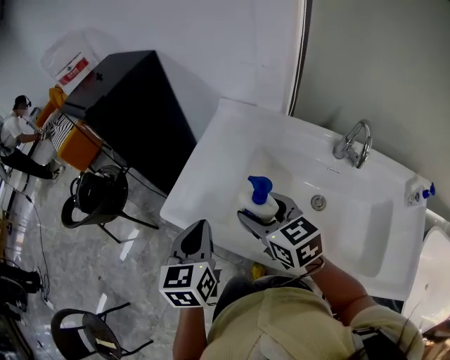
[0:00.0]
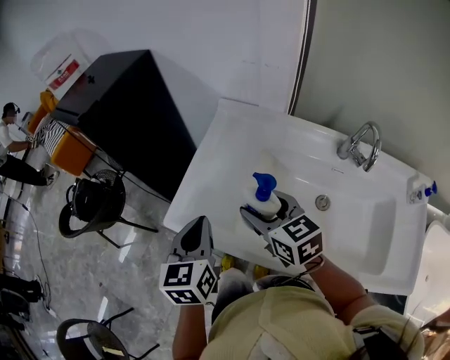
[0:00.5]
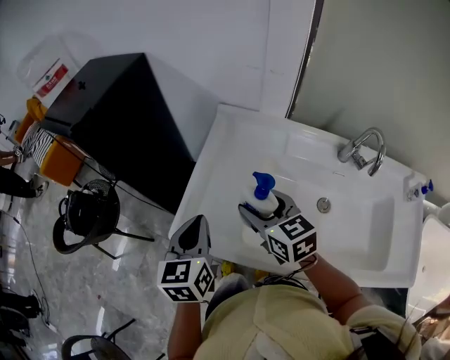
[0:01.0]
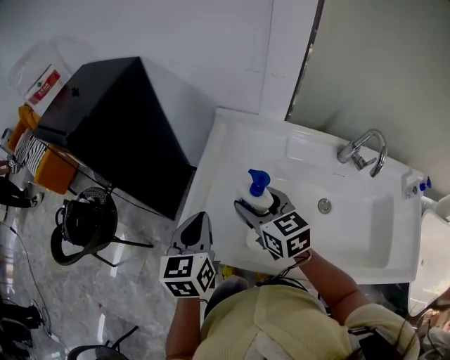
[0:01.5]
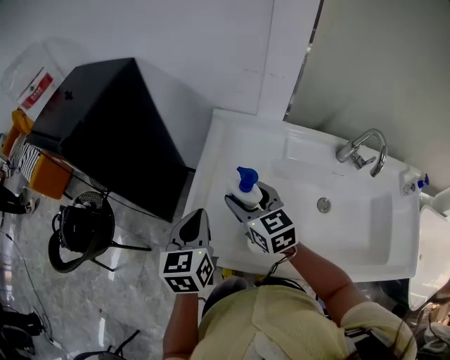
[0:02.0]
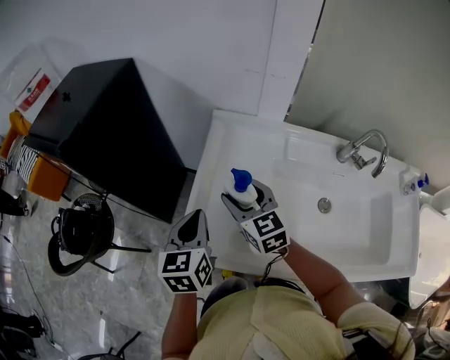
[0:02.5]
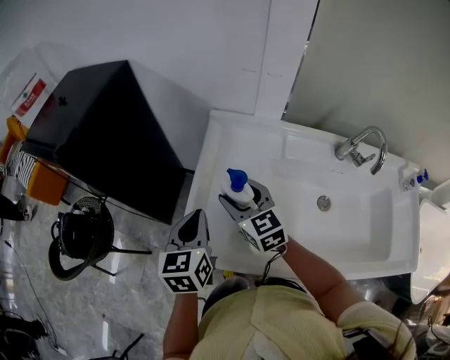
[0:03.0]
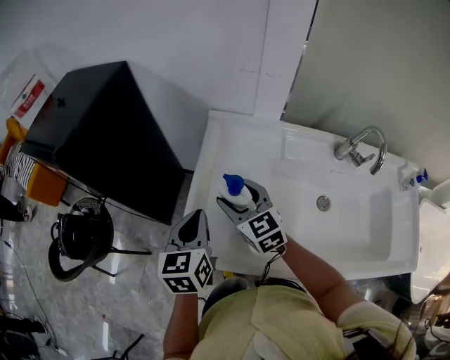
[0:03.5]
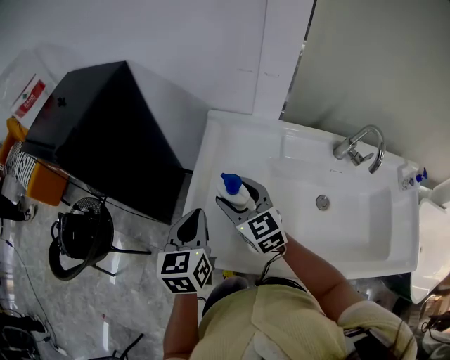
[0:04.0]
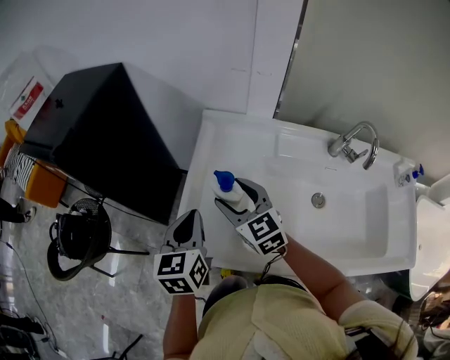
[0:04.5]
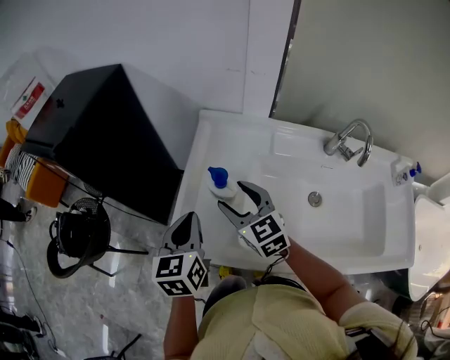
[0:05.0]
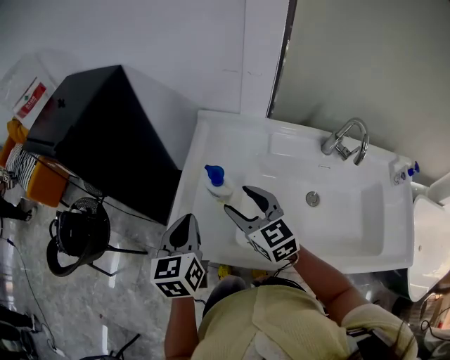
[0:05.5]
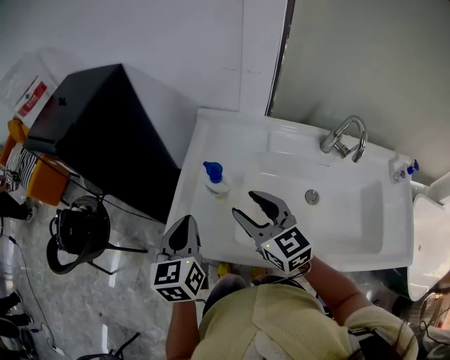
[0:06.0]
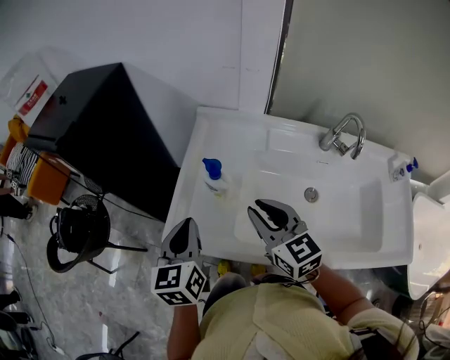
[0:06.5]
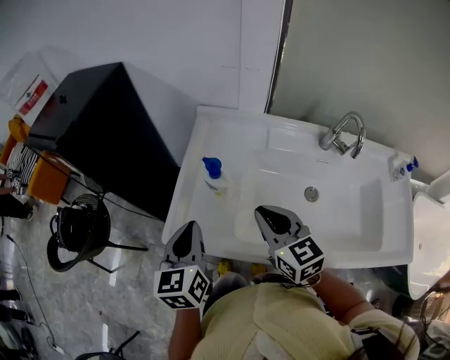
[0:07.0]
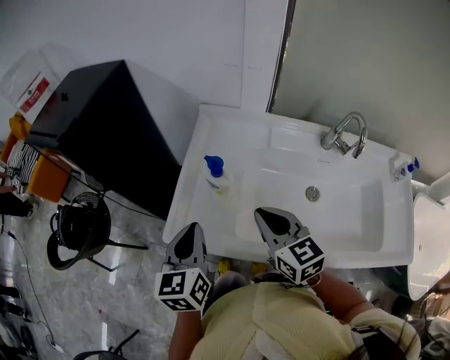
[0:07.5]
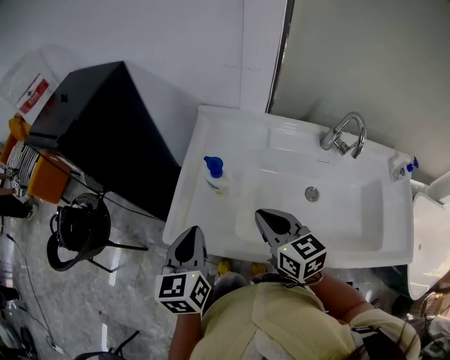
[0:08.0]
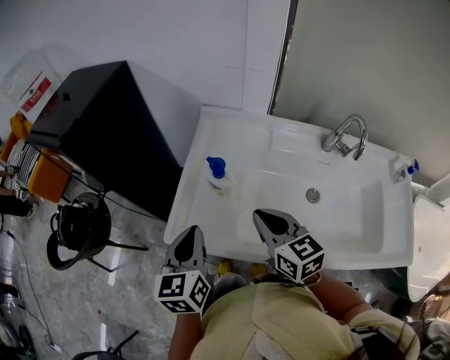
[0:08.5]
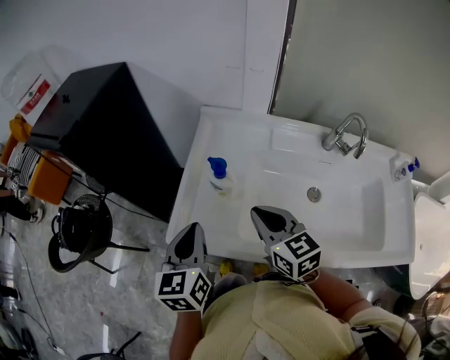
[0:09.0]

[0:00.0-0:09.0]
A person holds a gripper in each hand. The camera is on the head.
0:00.0 to 0:02.0: The left gripper moves forward, some 15 cm. The right gripper goes some 15 cm forward and to the left.
0:02.0 to 0:04.5: The grippers move only a little.
0:04.5 to 0:07.0: The left gripper travels backward by approximately 5 cm. The right gripper heads backward and to the right, covering about 15 cm, and closes its fingers.
0:07.0 to 0:09.0: The grippers stay close to where they were, moving slightly.

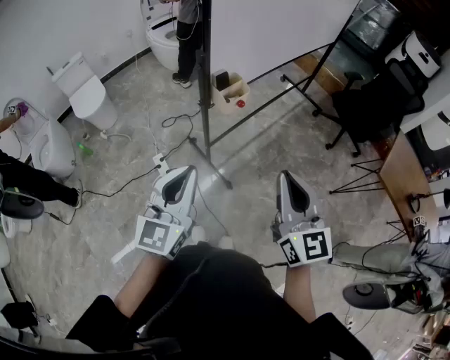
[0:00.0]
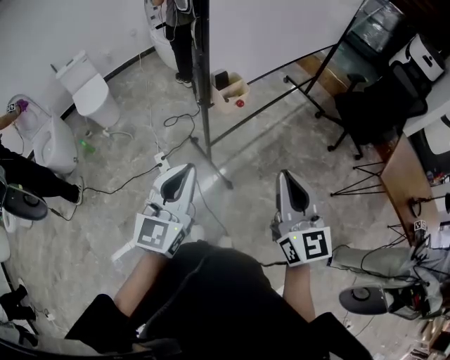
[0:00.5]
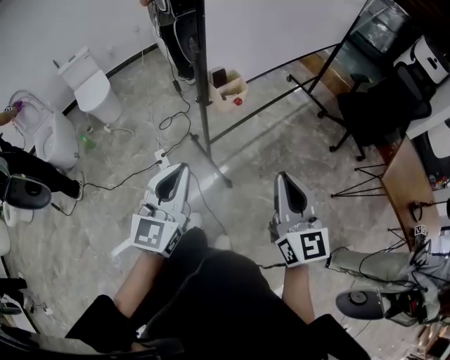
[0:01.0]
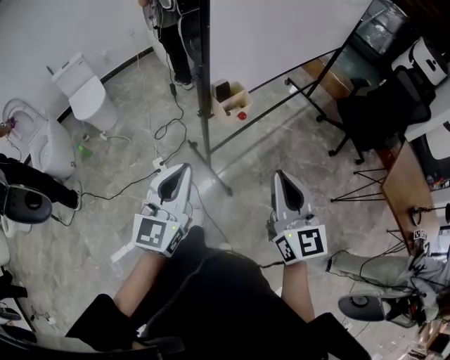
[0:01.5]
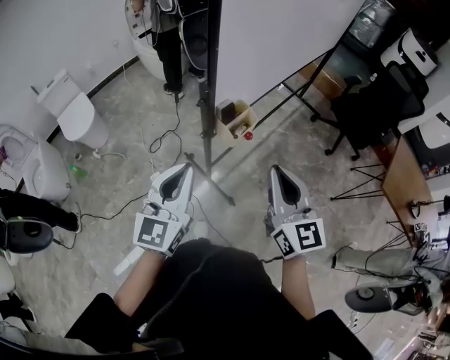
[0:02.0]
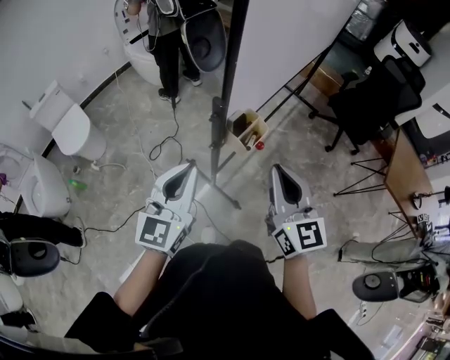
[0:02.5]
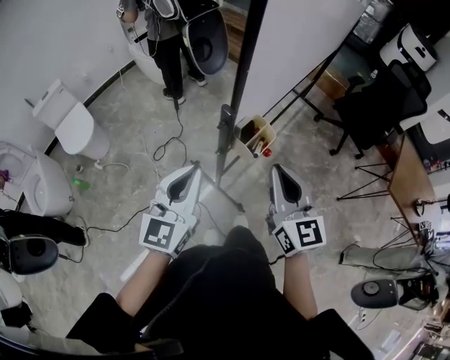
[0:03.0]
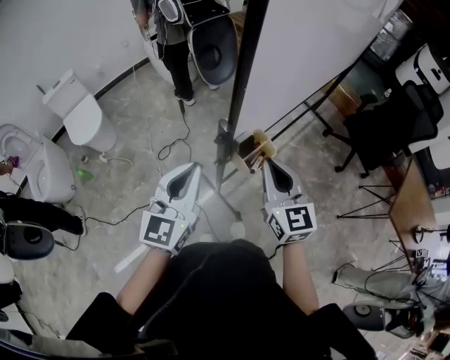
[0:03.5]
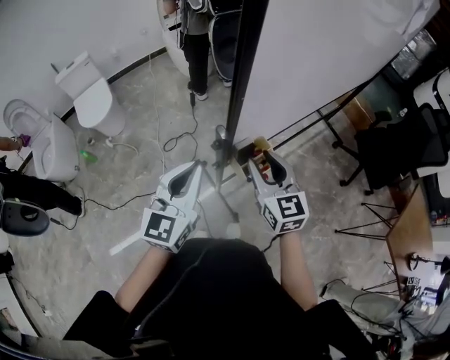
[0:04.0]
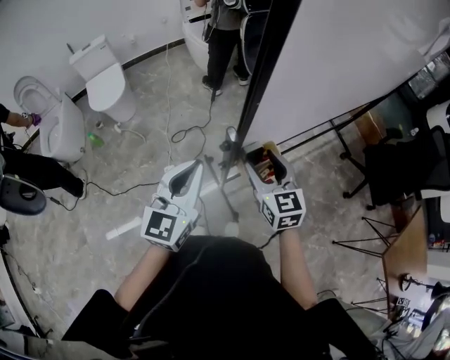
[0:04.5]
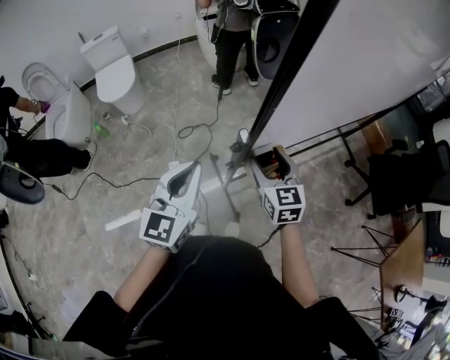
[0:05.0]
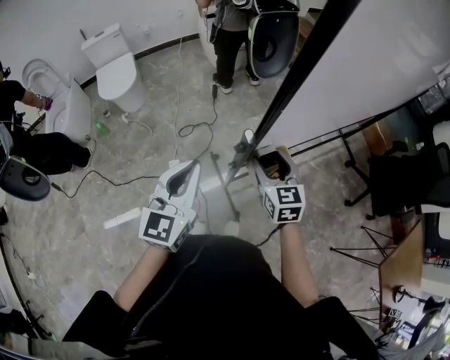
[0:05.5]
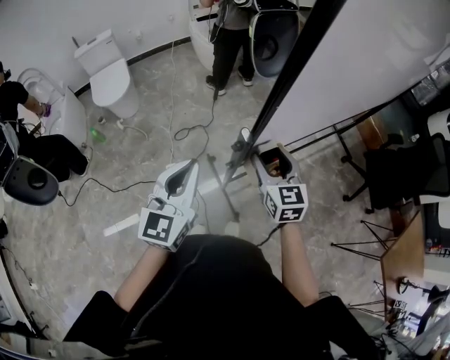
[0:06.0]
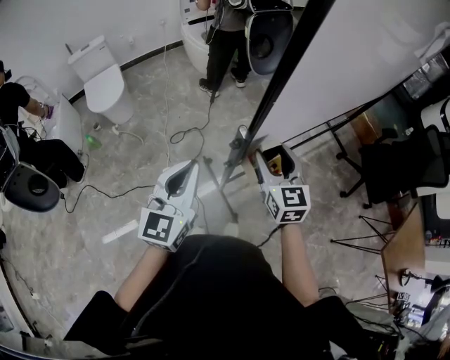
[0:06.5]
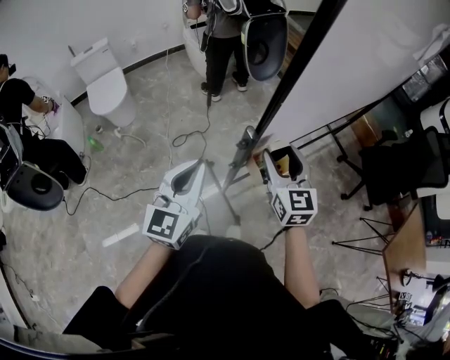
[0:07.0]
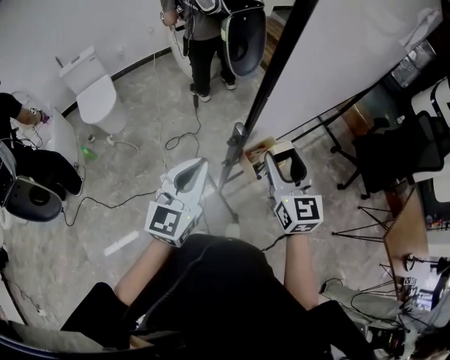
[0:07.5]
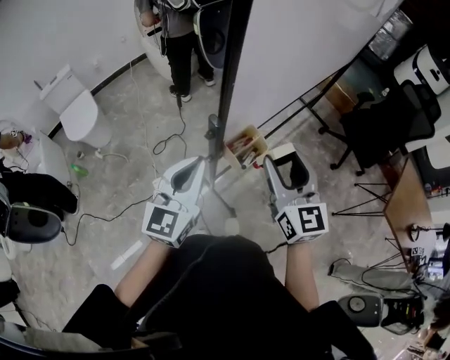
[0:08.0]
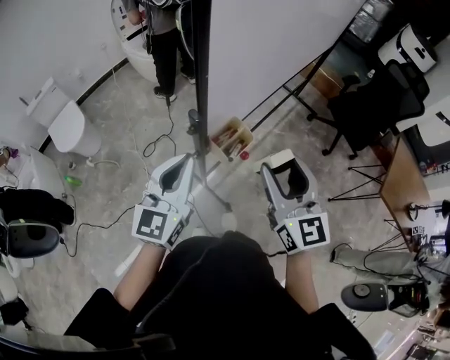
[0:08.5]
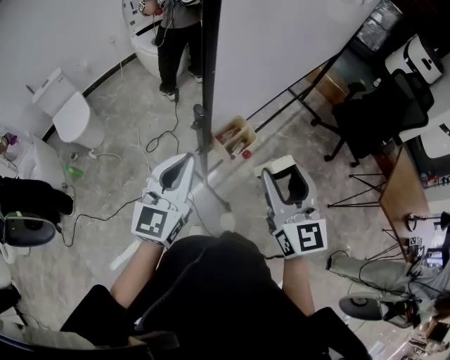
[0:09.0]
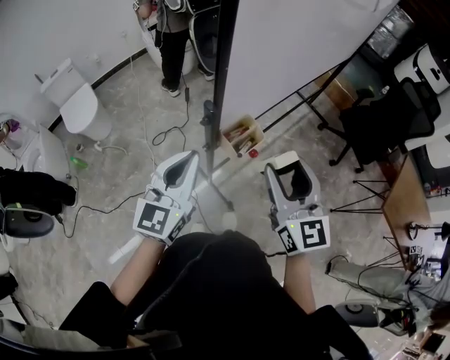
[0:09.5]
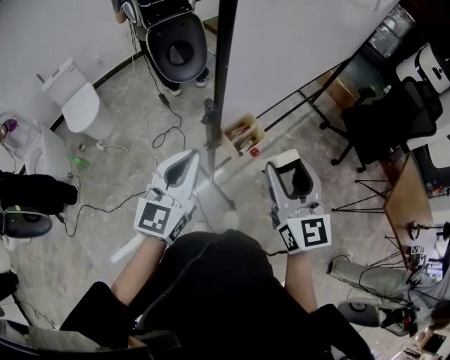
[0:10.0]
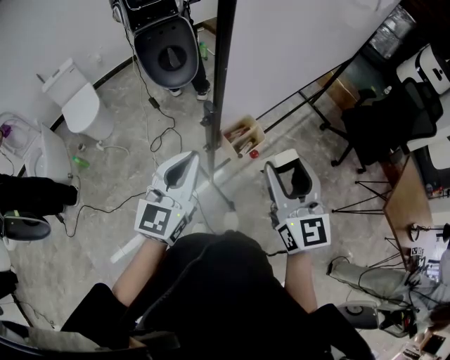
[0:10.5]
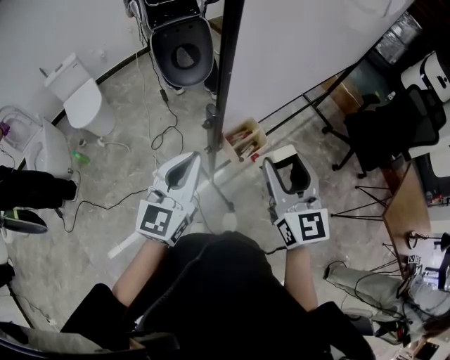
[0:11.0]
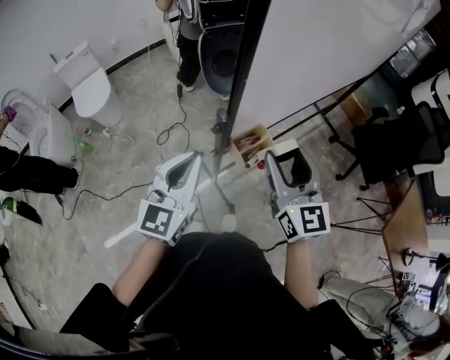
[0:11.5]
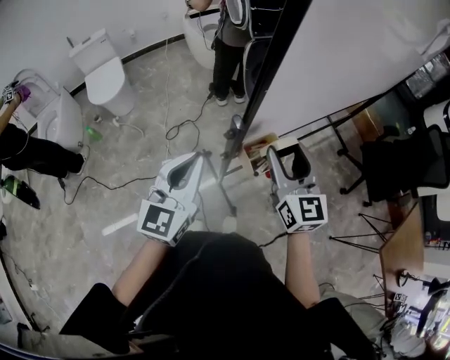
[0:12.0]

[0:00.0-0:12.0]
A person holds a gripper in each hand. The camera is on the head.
0:00.0 to 0:02.0: The left gripper shifts roughly 15 cm forward; the right gripper is displaced forward and to the left by some 15 cm.
0:02.0 to 0:04.0: The right gripper is displaced forward by approximately 20 cm, rotates about 20 degrees, and opens its fingers. Meanwhile the left gripper moves forward, roughly 15 cm.
0:04.0 to 0:06.0: The right gripper shifts by approximately 5 cm.
0:06.0 to 0:08.0: The right gripper goes some 15 cm upward, backward and to the right, and turns by roughly 20 degrees; the left gripper heads to the right, covering about 5 cm.
0:08.0 to 0:10.0: The right gripper heads backward, covering approximately 5 cm.
0:10.0 to 0:12.0: The right gripper shifts some 10 cm forward.

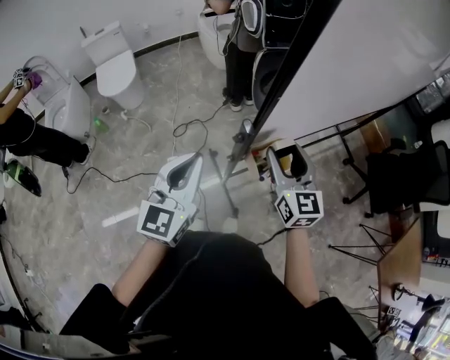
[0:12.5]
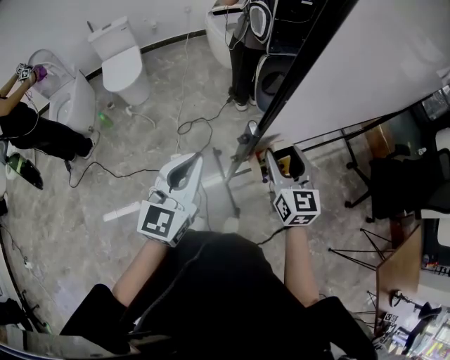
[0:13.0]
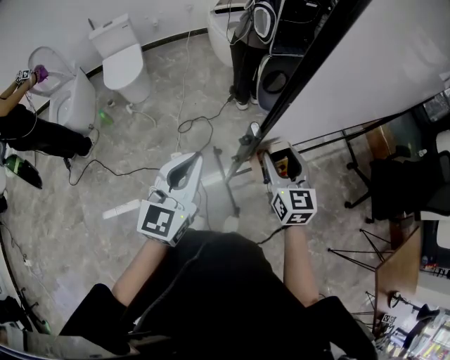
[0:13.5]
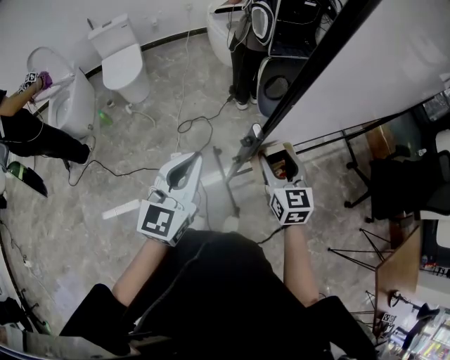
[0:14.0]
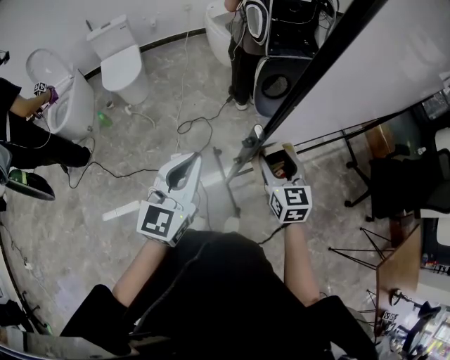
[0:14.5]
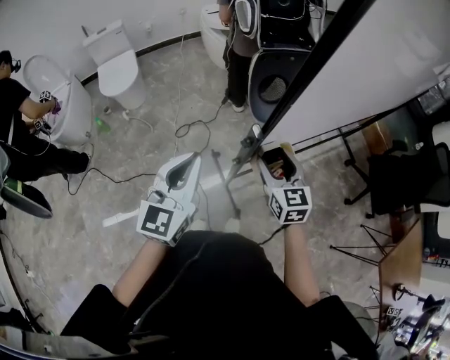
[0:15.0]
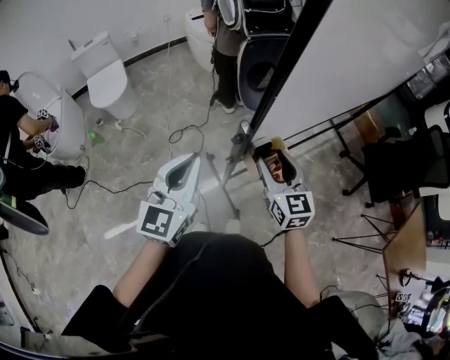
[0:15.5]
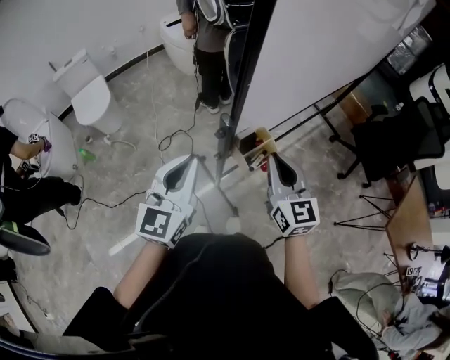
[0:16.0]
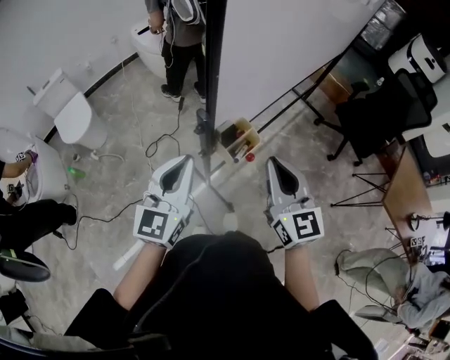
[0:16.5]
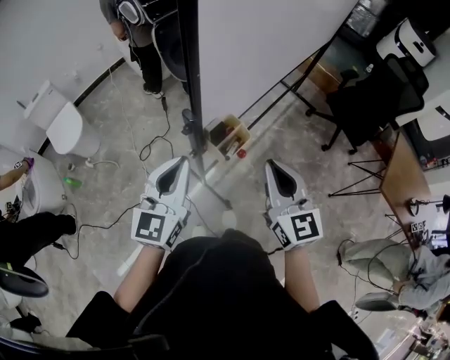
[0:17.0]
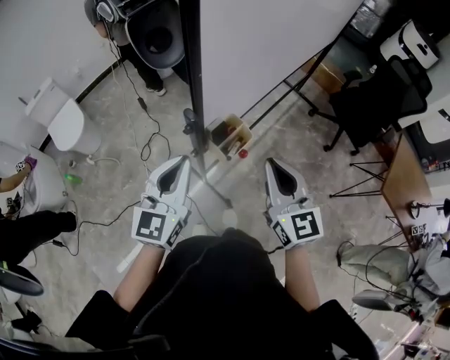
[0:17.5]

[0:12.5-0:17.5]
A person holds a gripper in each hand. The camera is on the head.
0:12.5 to 0:15.0: The right gripper is displaced downward by approximately 5 cm.
0:15.0 to 0:17.5: The right gripper moves backward, upward and to the right, approximately 20 cm, rotates about 20 degrees, and closes its fingers, while the left gripper travels to the right by some 10 cm, and changes its angle by about 20 degrees.

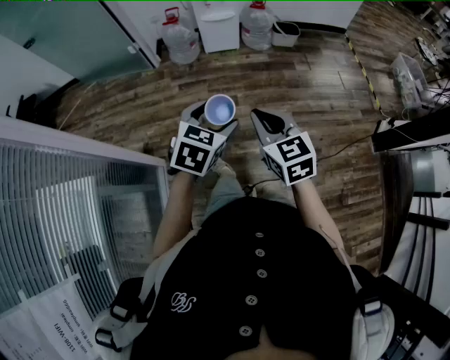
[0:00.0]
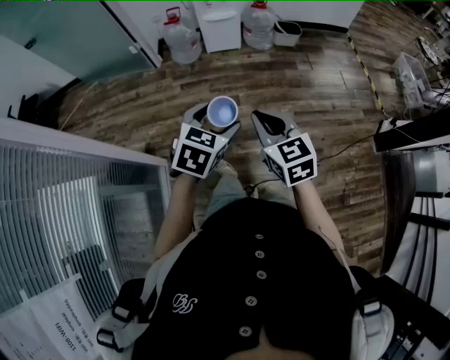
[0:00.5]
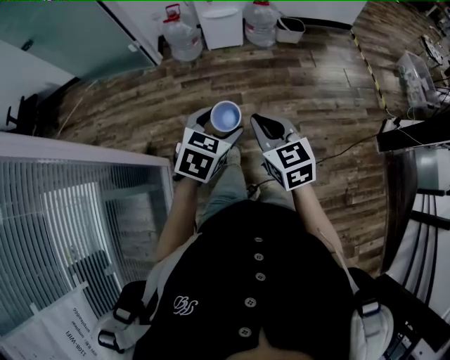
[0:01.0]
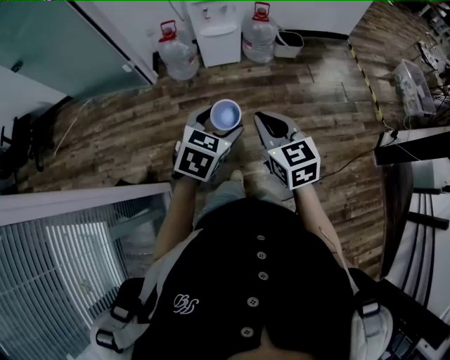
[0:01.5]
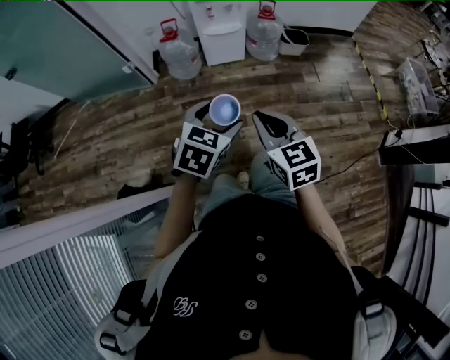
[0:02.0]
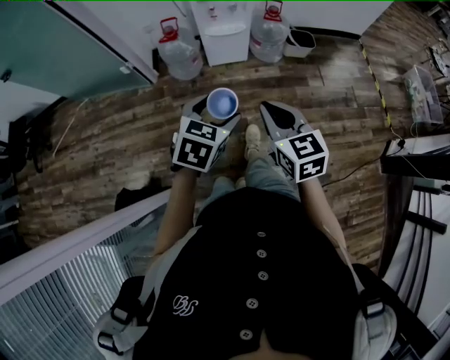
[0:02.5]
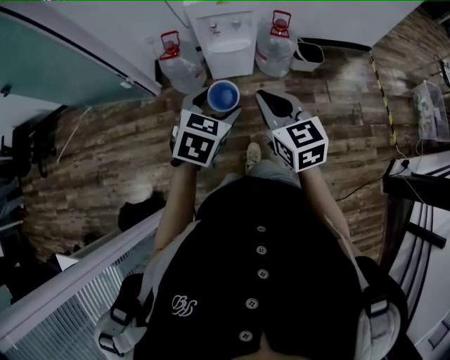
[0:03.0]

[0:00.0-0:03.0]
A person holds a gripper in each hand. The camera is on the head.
0:00.0 to 0:01.5: The grippers both shift forward by about 15 cm.
0:01.5 to 0:03.0: The grippers both shift forward by about 30 cm.
